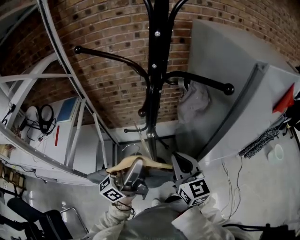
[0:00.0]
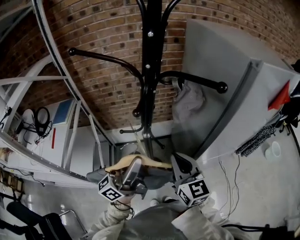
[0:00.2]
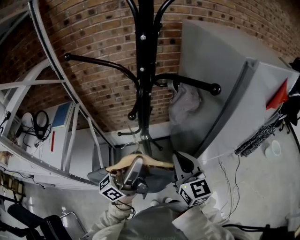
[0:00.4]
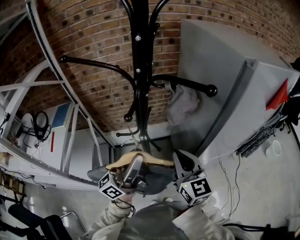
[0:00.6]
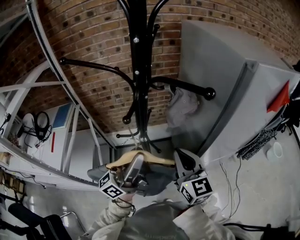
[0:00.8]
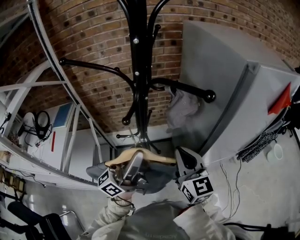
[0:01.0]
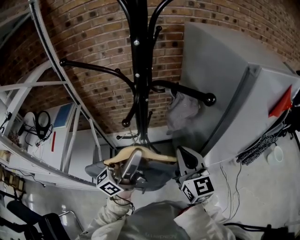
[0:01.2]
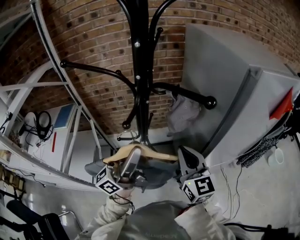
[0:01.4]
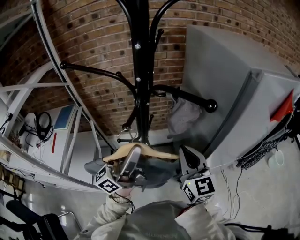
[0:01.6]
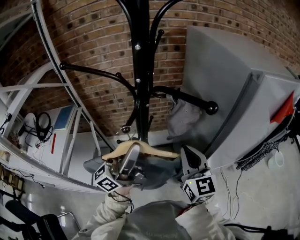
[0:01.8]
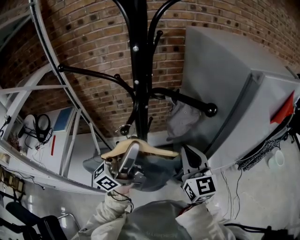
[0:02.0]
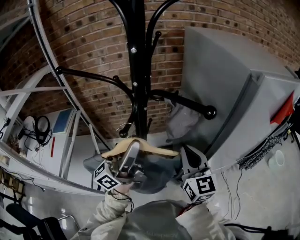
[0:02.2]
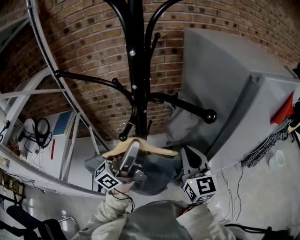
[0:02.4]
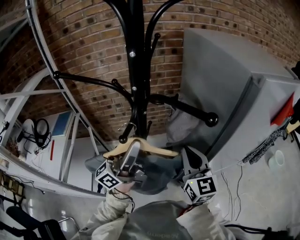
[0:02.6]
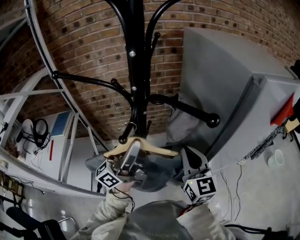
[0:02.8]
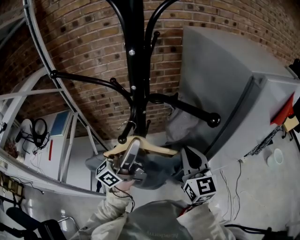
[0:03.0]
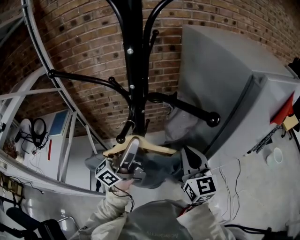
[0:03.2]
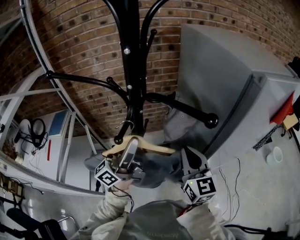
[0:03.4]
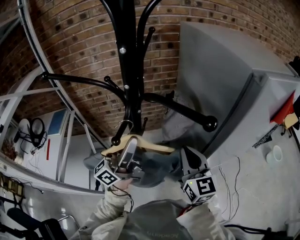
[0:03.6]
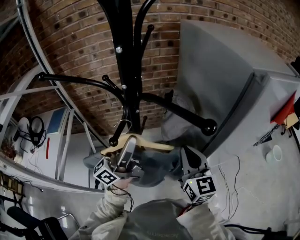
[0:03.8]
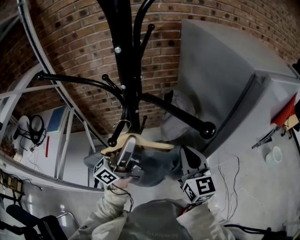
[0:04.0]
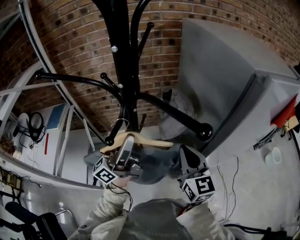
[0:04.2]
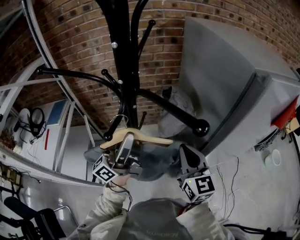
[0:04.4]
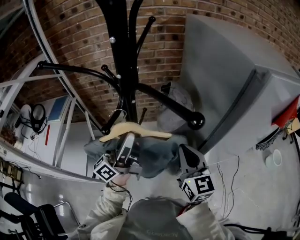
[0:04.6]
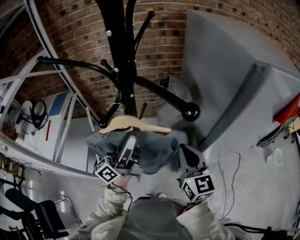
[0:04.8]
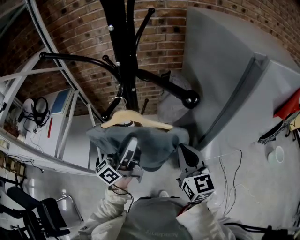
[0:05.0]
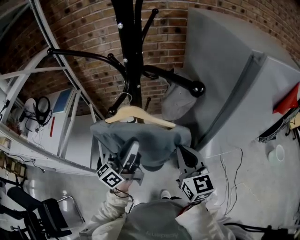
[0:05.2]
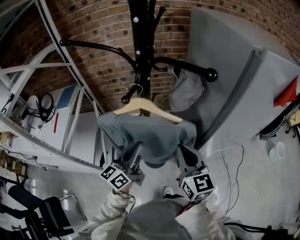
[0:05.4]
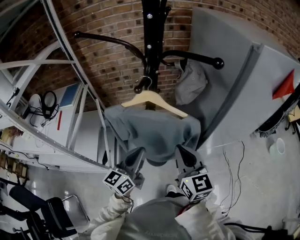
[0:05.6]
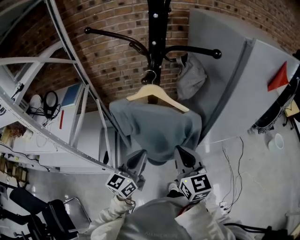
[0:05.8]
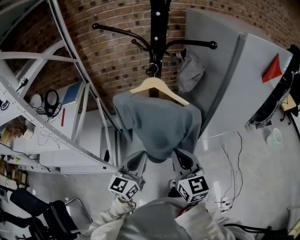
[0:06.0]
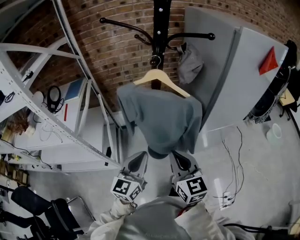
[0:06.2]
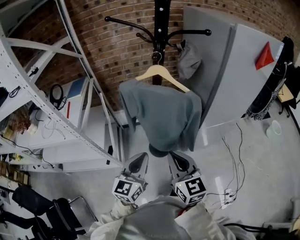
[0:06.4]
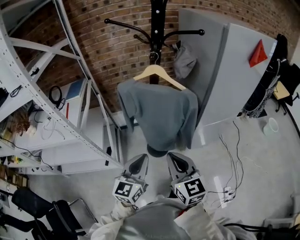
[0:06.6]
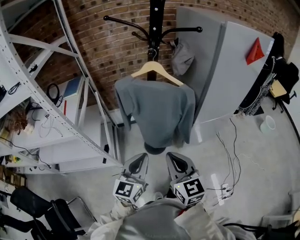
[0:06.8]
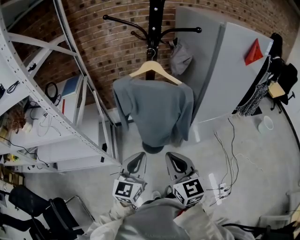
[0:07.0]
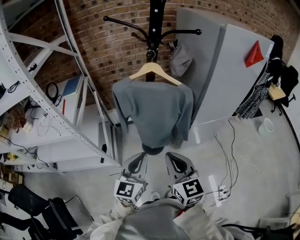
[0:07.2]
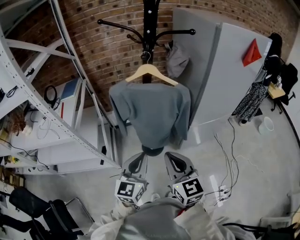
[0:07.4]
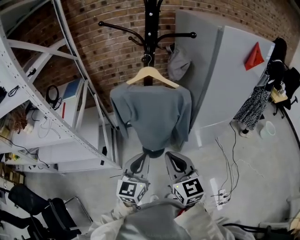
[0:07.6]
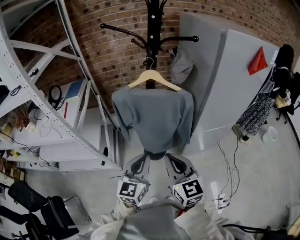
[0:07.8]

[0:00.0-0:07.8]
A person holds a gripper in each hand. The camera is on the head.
0.0 to 1.6 s: The left gripper goes some 10 cm forward and upward. The right gripper moves forward and to the right, some 10 cm.
1.6 to 3.2 s: The left gripper shifts roughly 5 cm forward.
3.2 to 4.6 s: The grippers make only small movements.
4.6 to 6.2 s: The left gripper goes some 30 cm backward and downward, tips its fingers downward by approximately 30 degrees, and closes up. Meanwhile the right gripper is displaced backward and to the left by about 30 cm.
6.2 to 7.8 s: The left gripper ends up approximately 5 cm from where it was. Meanwhile the right gripper heads backward, covering approximately 5 cm.

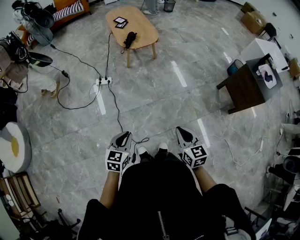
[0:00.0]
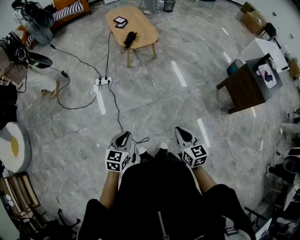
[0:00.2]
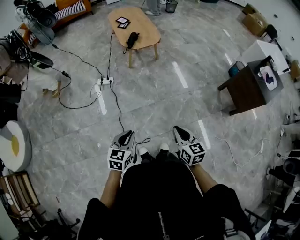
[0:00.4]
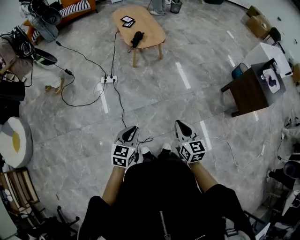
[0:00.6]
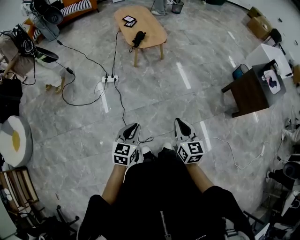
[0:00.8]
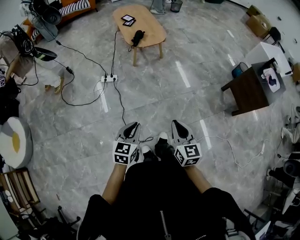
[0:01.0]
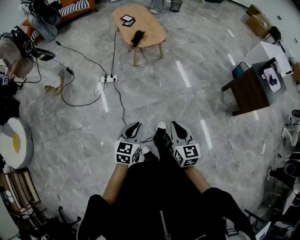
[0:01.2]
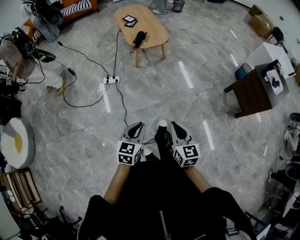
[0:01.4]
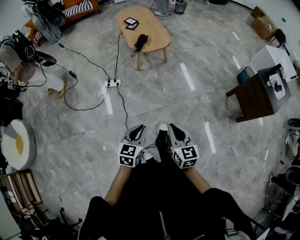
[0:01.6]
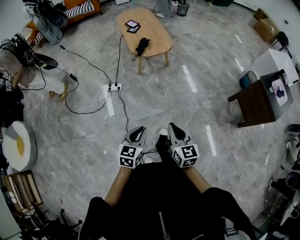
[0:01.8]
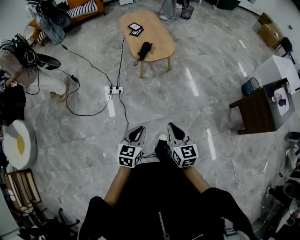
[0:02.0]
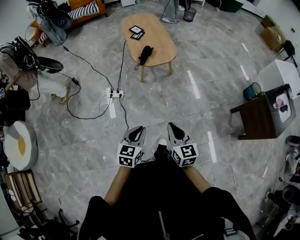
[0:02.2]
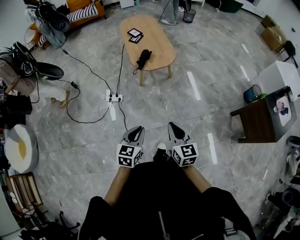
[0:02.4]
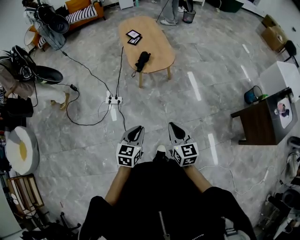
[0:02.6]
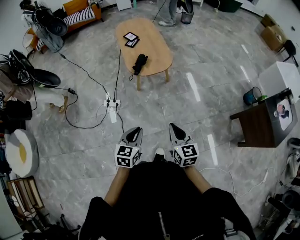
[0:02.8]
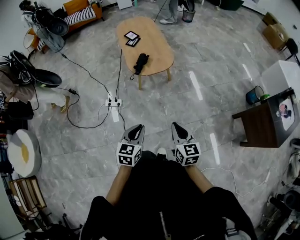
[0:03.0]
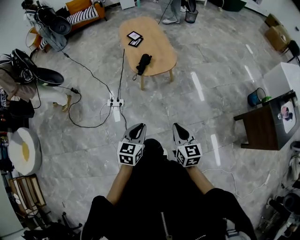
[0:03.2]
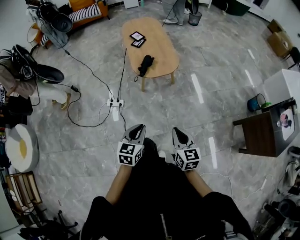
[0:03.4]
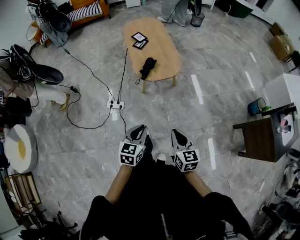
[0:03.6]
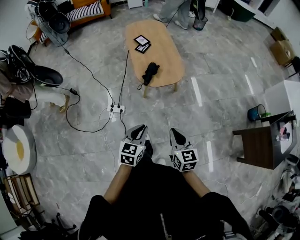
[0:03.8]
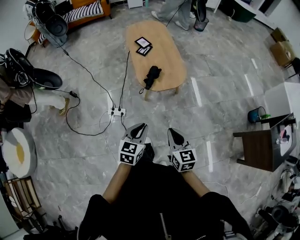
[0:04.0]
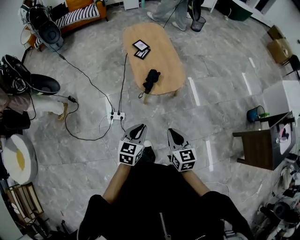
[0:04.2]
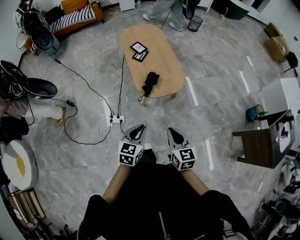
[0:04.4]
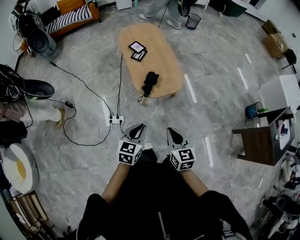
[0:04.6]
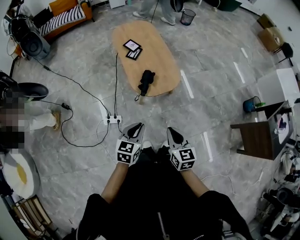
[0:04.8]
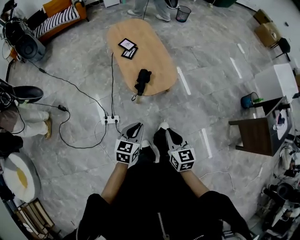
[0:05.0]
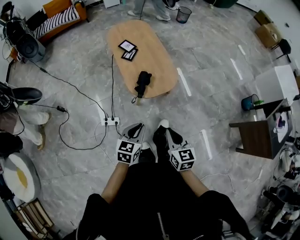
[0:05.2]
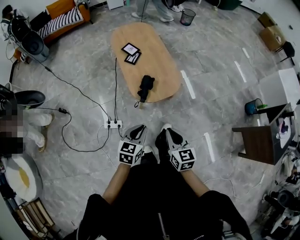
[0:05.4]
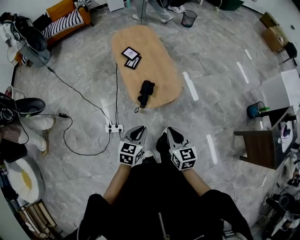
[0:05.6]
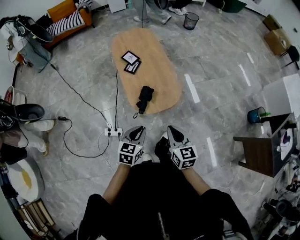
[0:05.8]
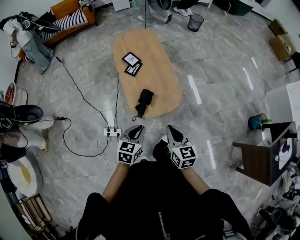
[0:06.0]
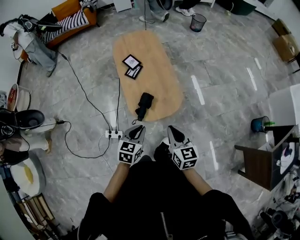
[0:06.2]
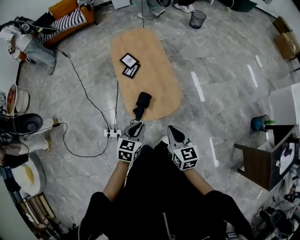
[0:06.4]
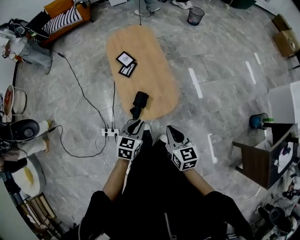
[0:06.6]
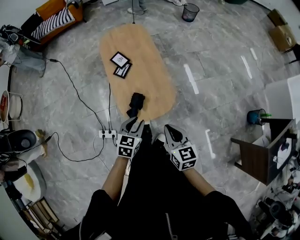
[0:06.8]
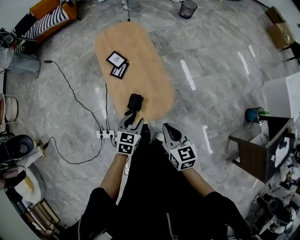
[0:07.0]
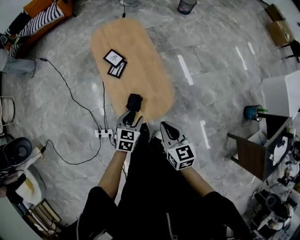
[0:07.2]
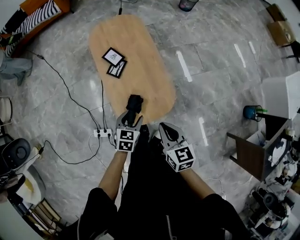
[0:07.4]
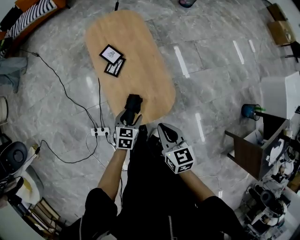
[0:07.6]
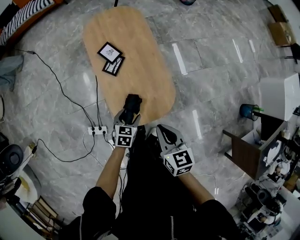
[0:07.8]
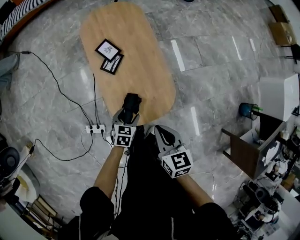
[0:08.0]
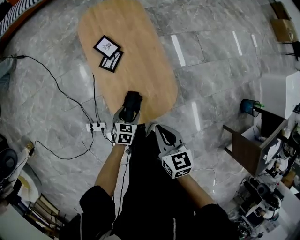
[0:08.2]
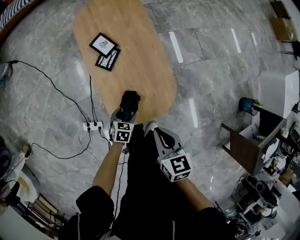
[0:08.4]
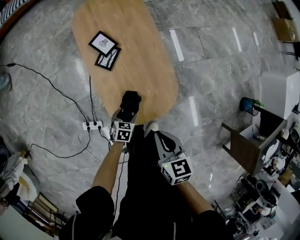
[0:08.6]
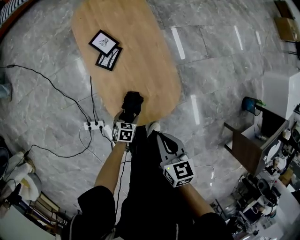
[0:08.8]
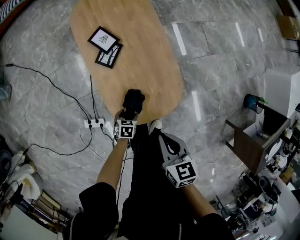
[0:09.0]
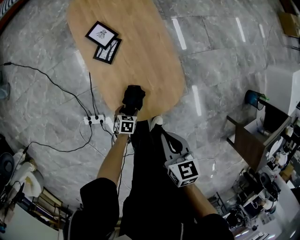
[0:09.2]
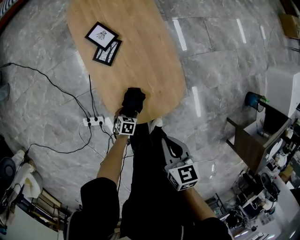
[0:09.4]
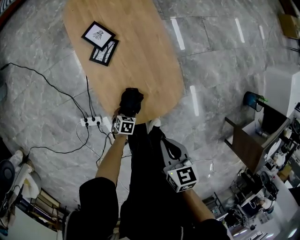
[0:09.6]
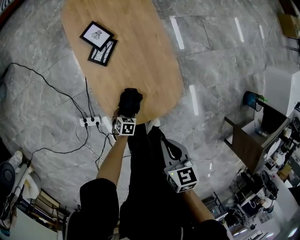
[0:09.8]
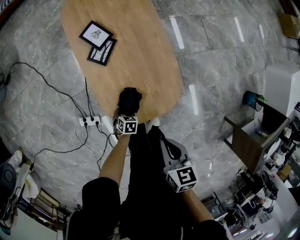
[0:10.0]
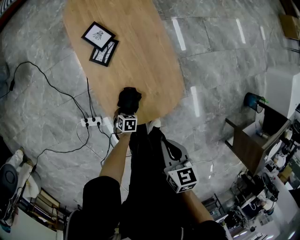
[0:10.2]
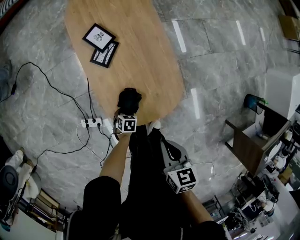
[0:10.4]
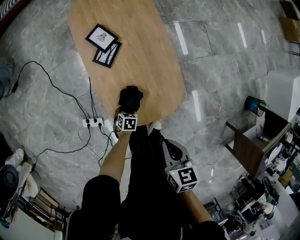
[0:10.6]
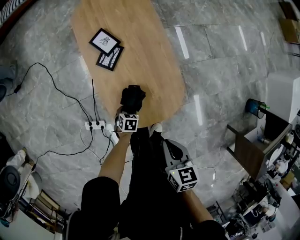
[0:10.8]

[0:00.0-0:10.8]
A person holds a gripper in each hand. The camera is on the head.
0.0 to 1.6 s: The left gripper shifts some 10 cm forward, while the right gripper heads to the left and forward, covering roughly 10 cm.
1.6 to 3.0 s: Both grippers travel together forward, approximately 25 cm.
3.0 to 4.6 s: The grippers both shift forward and to the left by about 25 cm.
4.6 to 6.2 s: Both grippers move forward, about 25 cm.
6.2 to 7.8 s: The right gripper travels forward by roughly 15 cm. Meanwhile the left gripper travels forward and downward by about 25 cm, and opens up.
7.8 to 9.2 s: The left gripper moves downward, approximately 20 cm, and changes its angle by approximately 20 degrees, while the right gripper heads downward, covering some 10 cm.
9.2 to 10.8 s: The grippers stay close to where they were, moving slightly.

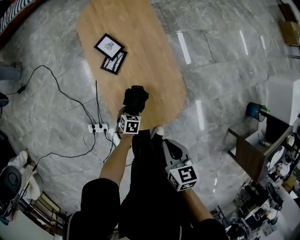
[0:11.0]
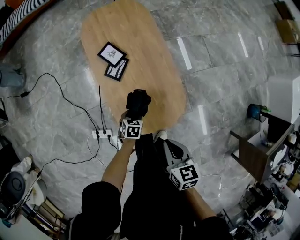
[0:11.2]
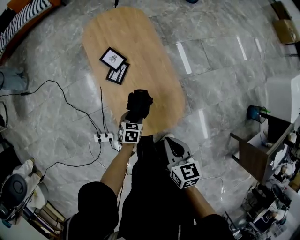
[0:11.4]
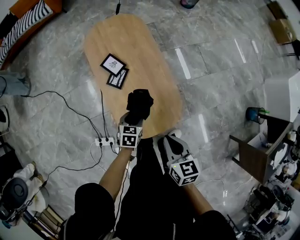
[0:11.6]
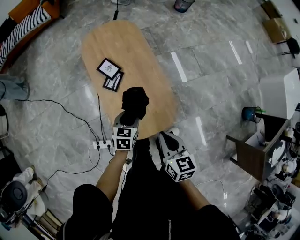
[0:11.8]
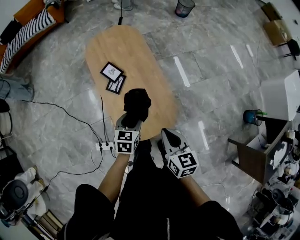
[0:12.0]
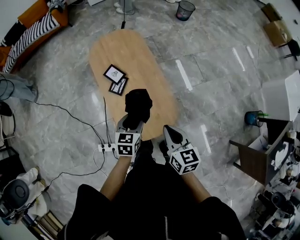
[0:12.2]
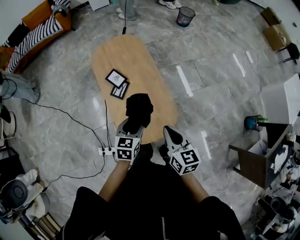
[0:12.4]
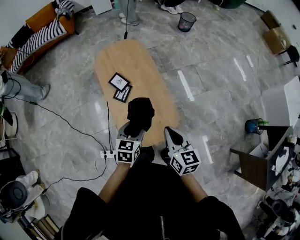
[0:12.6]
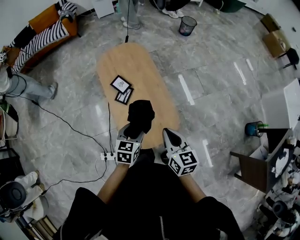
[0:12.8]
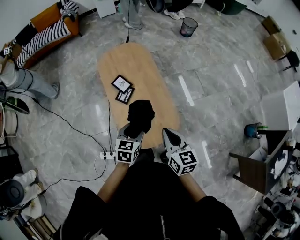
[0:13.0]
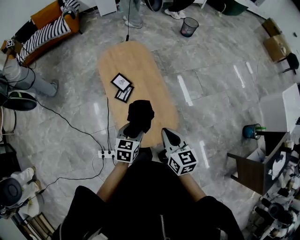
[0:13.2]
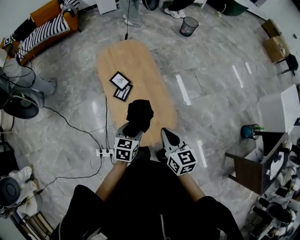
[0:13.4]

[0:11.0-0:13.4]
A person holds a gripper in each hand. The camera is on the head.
11.0 to 12.2 s: The left gripper shifts roughly 30 cm upward, and changes its angle by approximately 30 degrees, while the right gripper moves upward and forward, roughly 15 cm.
12.2 to 13.4 s: The grippers move only a little.

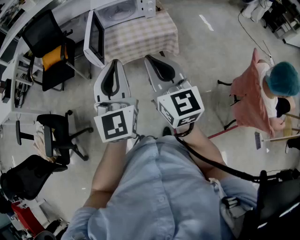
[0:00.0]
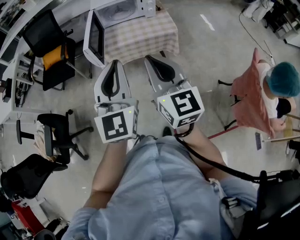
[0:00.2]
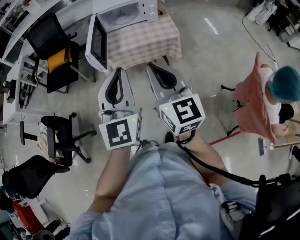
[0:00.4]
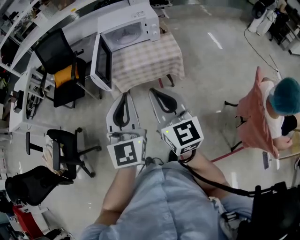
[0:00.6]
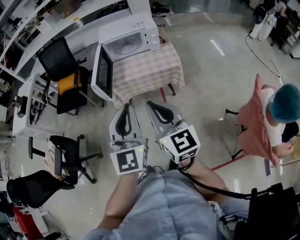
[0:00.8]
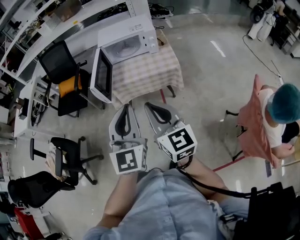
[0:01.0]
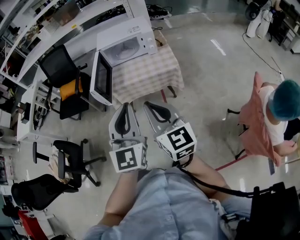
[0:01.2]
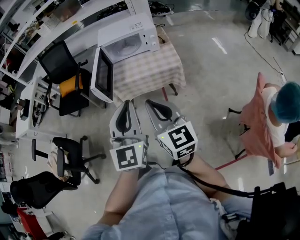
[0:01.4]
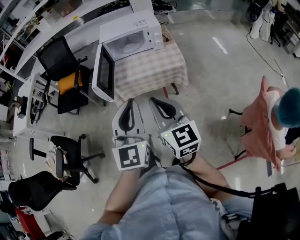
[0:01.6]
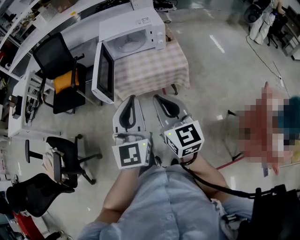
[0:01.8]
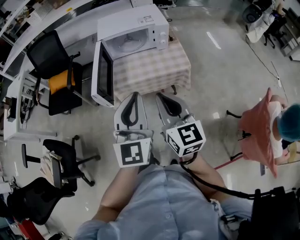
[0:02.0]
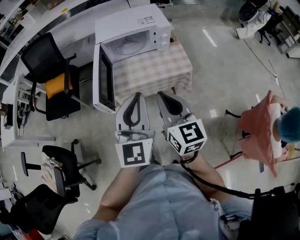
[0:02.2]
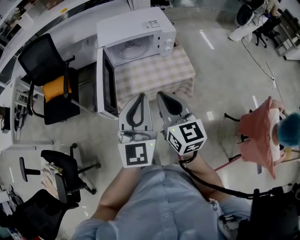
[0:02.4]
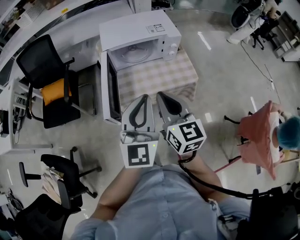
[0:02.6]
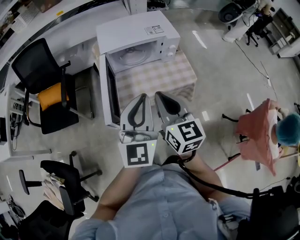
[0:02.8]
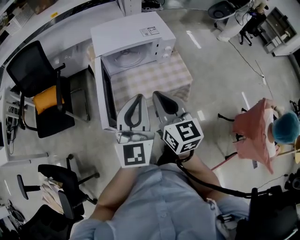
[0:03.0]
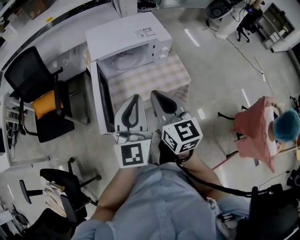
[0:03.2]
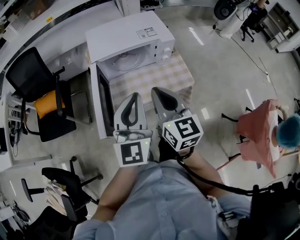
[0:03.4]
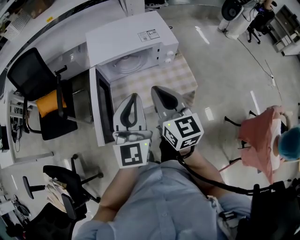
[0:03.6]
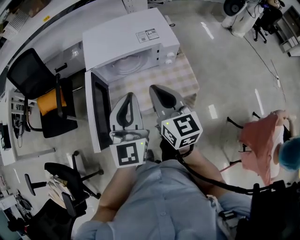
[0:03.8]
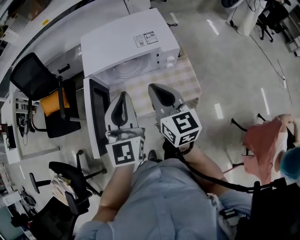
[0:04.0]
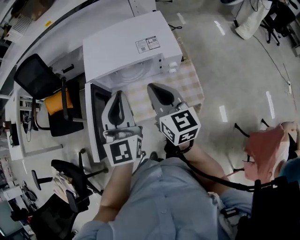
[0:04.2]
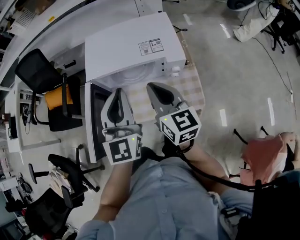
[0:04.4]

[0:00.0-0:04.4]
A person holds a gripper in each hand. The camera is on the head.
0.0 to 1.4 s: The left gripper goes about 10 cm to the right. The right gripper moves to the right, approximately 5 cm.
1.4 to 3.0 s: The two grippers go some 30 cm forward.
3.0 to 4.4 s: The left gripper goes about 20 cm forward. The right gripper moves forward and to the right, approximately 25 cm.
